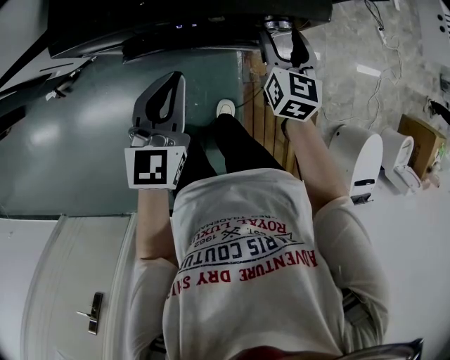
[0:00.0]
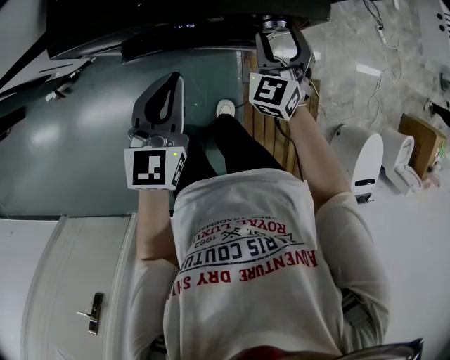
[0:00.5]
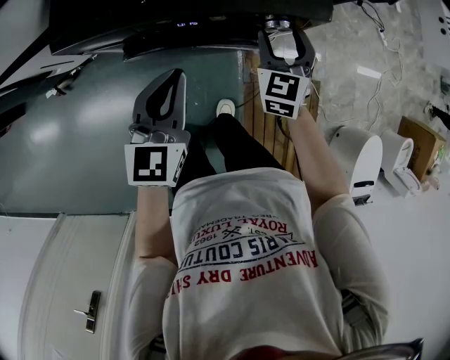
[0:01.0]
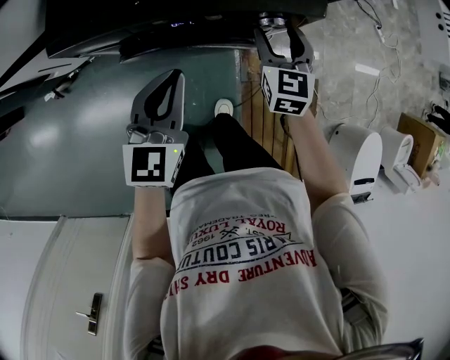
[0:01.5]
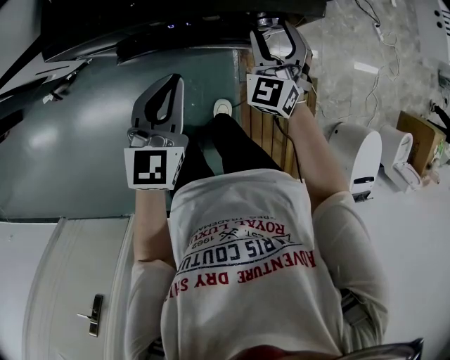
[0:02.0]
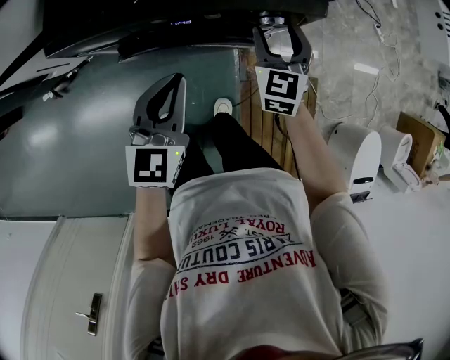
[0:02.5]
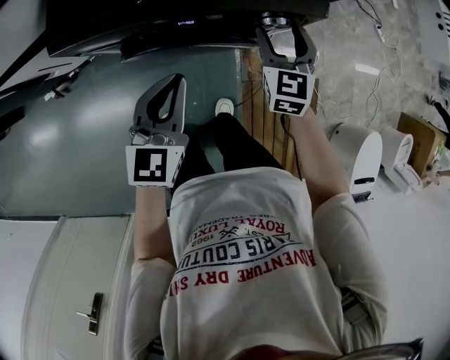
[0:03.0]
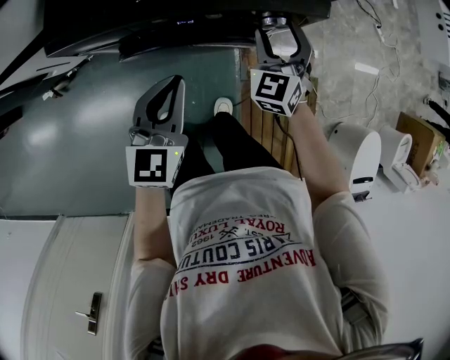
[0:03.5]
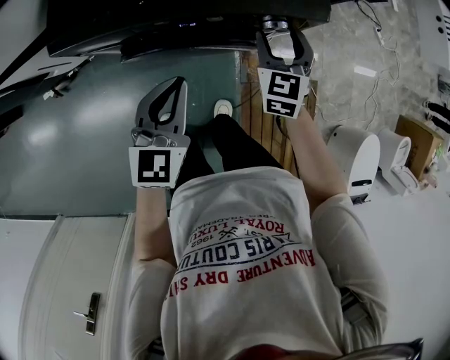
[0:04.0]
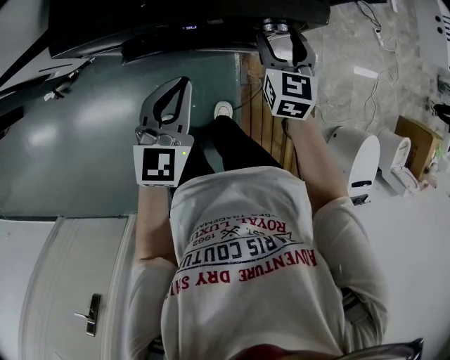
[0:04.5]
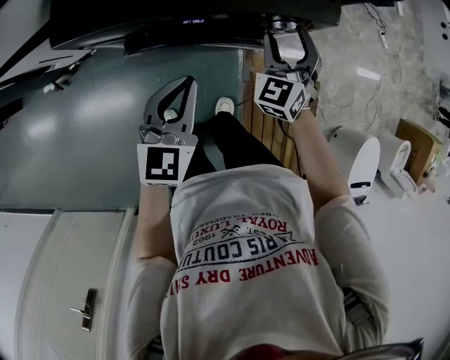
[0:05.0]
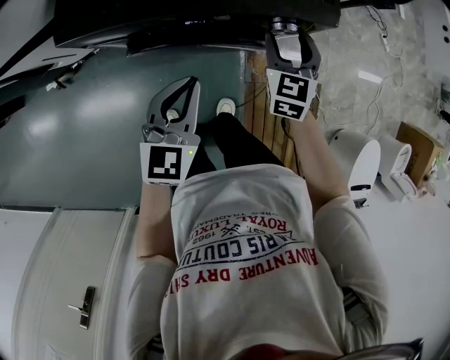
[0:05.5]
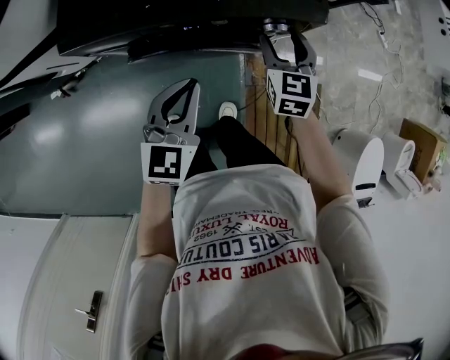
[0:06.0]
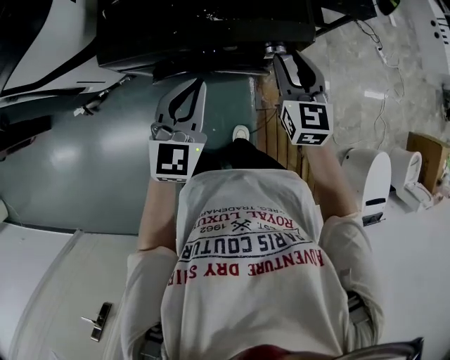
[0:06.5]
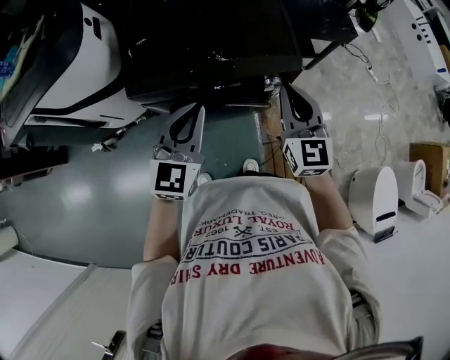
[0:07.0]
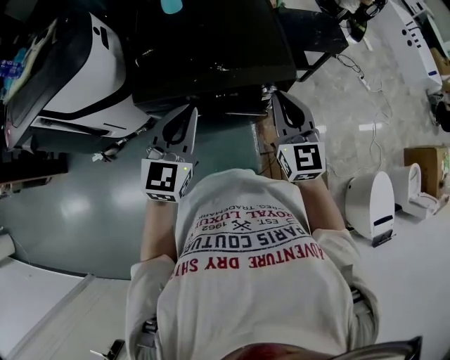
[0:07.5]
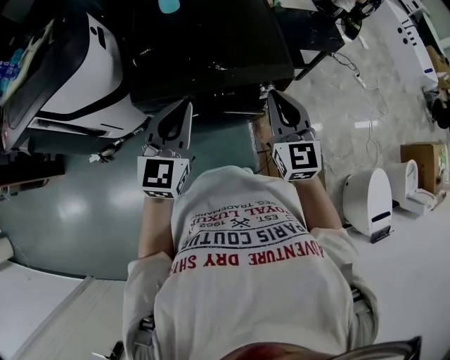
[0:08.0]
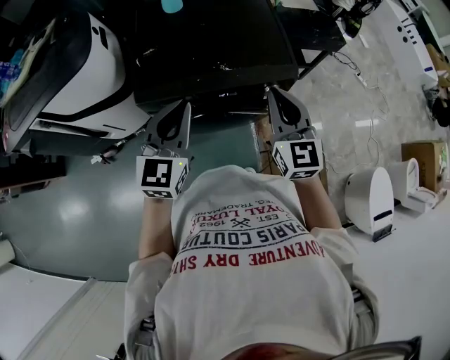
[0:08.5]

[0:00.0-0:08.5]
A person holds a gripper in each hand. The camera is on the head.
0:00.0 to 0:02.0: The right gripper rotates around the line of its fingers by some 40 degrees, counterclockwise from behind.
0:02.0 to 0:04.0: The right gripper swivels roughly 20 degrees.
0:04.0 to 0:06.5: The grippers both shift upward by about 10 cm. The right gripper closes its fingers.
0:06.5 to 0:08.5: The right gripper moves upward, to the left and backward, roughly 15 cm, and closes up. Meanwhile the left gripper is displaced upward and to the left by roughly 15 cm.

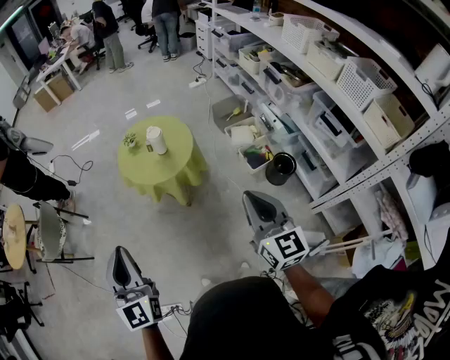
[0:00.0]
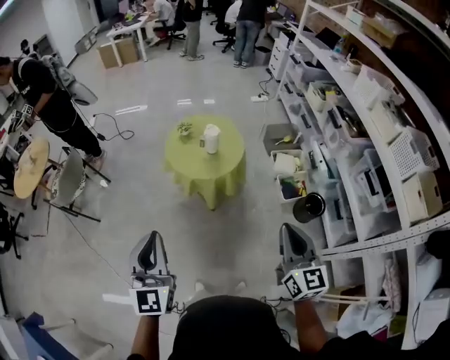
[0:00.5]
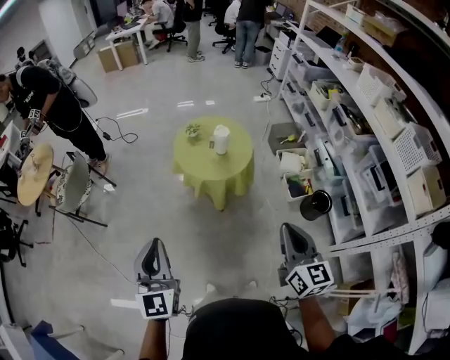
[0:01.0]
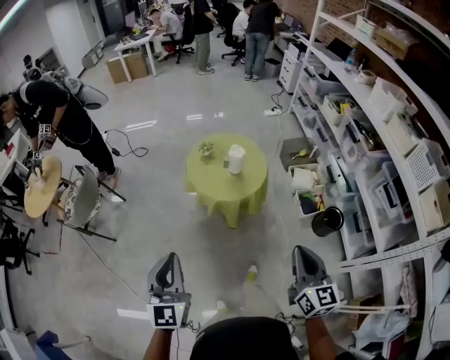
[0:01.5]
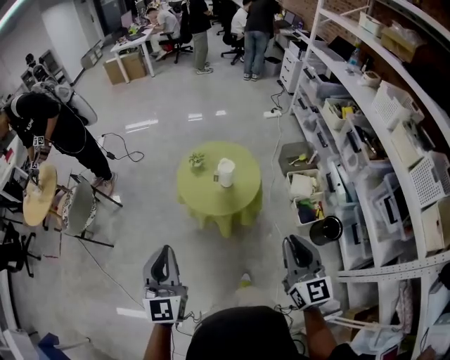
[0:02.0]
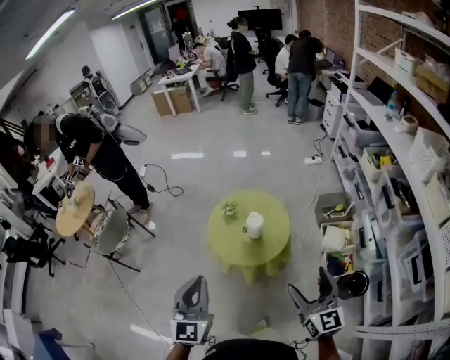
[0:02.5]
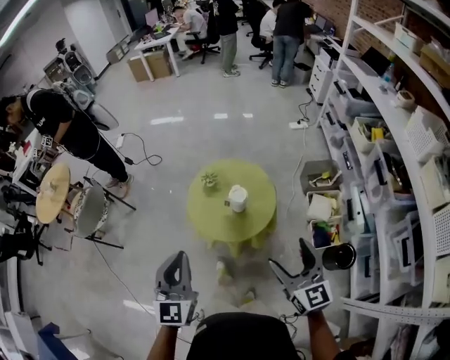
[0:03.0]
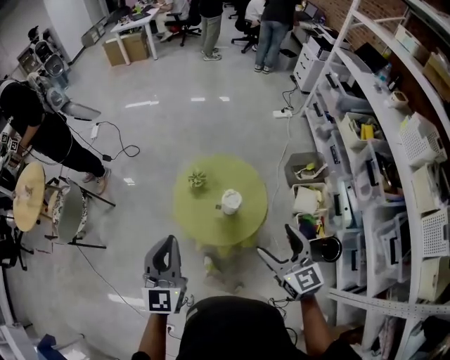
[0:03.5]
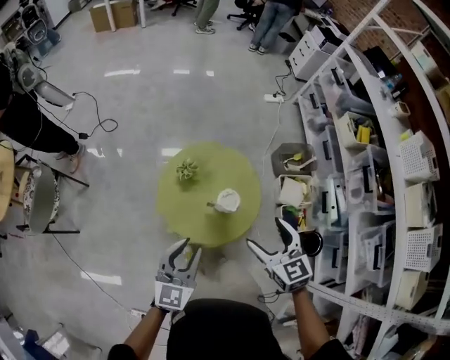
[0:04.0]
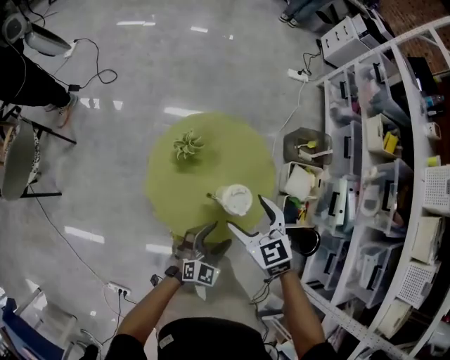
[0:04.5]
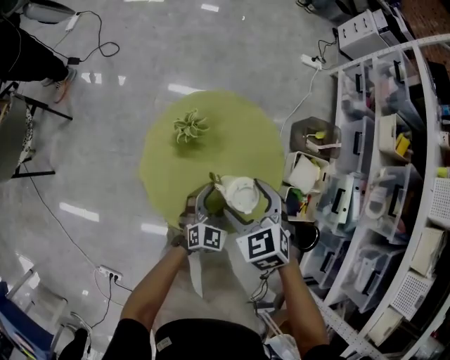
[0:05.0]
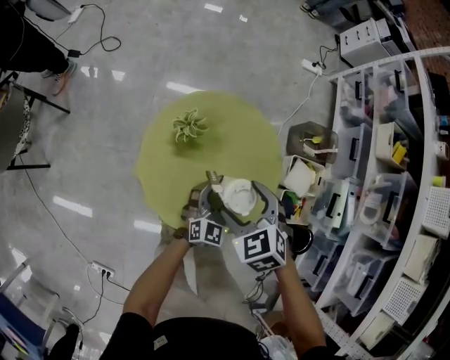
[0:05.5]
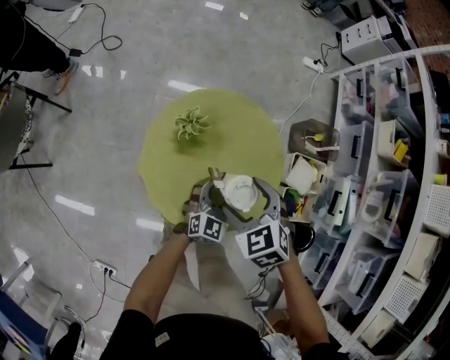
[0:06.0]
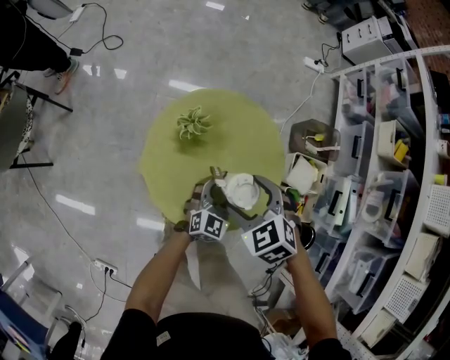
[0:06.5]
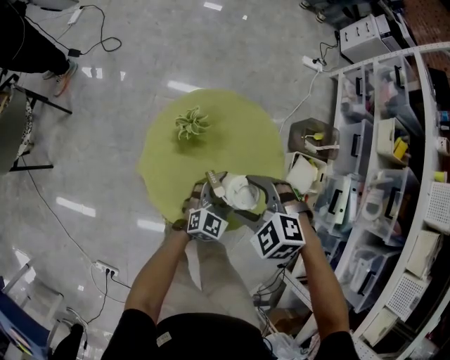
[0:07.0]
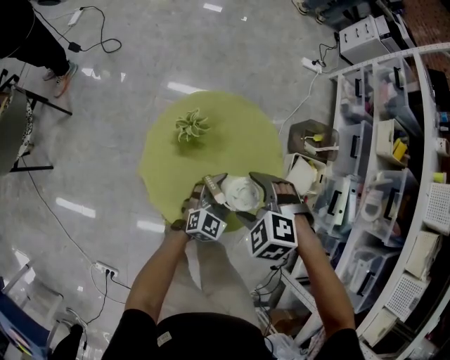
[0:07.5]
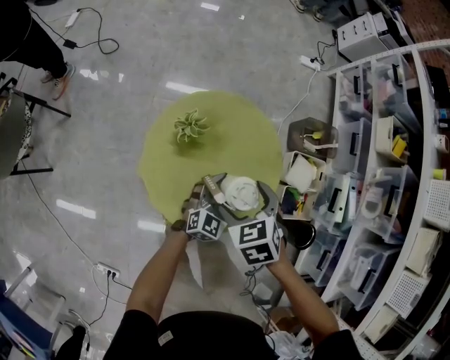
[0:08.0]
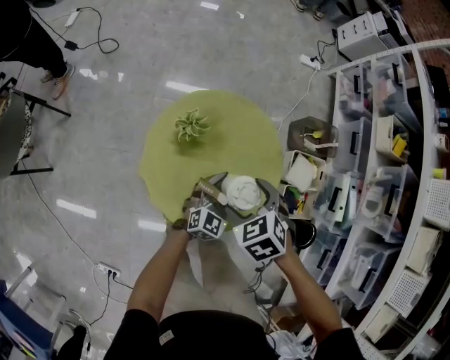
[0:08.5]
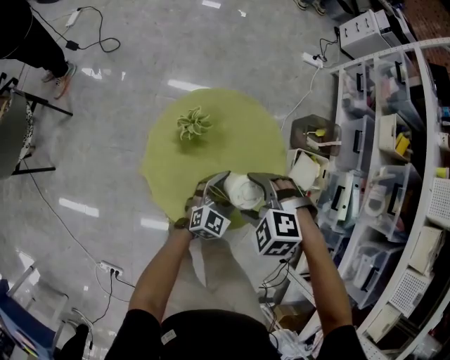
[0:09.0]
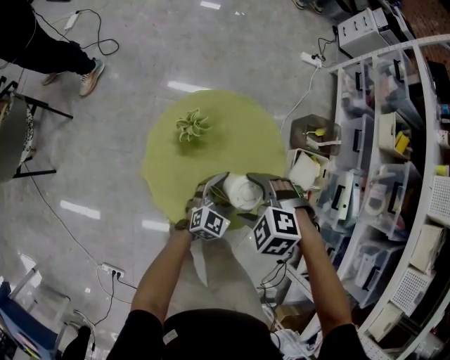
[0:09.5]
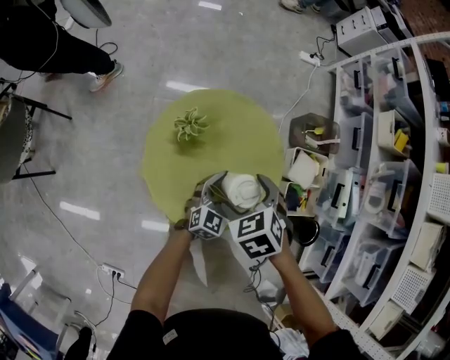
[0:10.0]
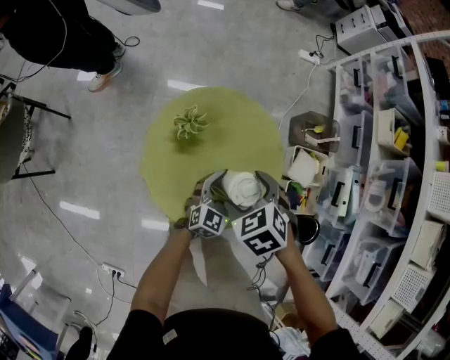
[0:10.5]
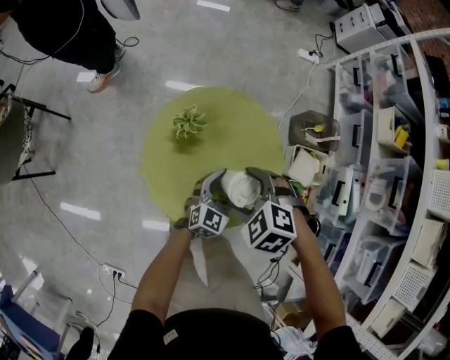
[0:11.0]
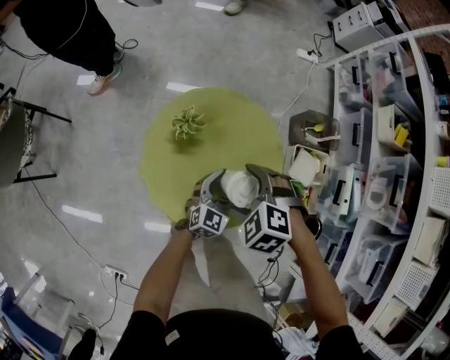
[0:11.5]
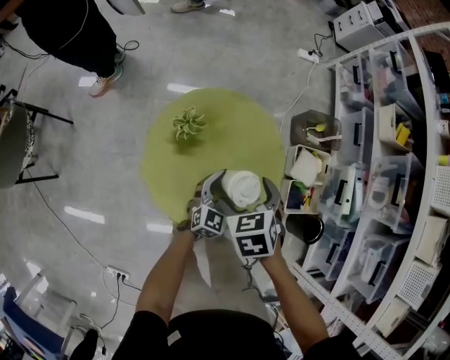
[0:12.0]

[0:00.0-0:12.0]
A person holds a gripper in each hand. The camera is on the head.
0:00.0 to 0:02.0: Both grippers move forward, approximately 15 cm.
0:02.0 to 0:04.0: The right gripper heads forward, covering some 35 cm, turns by some 30 degrees, and opens its fingers. The left gripper is displaced forward and downward by approximately 30 cm, and swivels roughly 20 degrees.
0:04.0 to 0:06.0: The left gripper heads downward, to the right and forward, covering roughly 40 cm, and opens its fingers. The right gripper is displaced downward and forward by about 25 cm, and changes its angle by about 40 degrees.

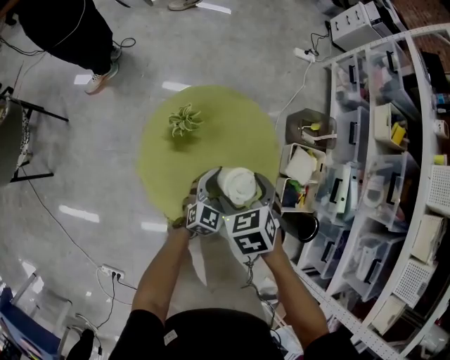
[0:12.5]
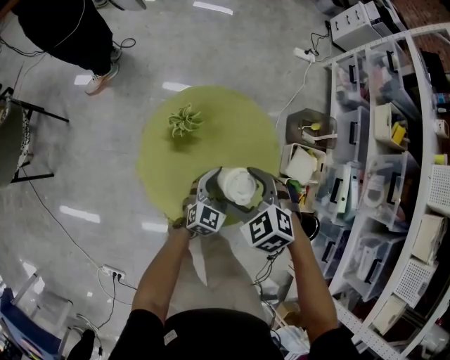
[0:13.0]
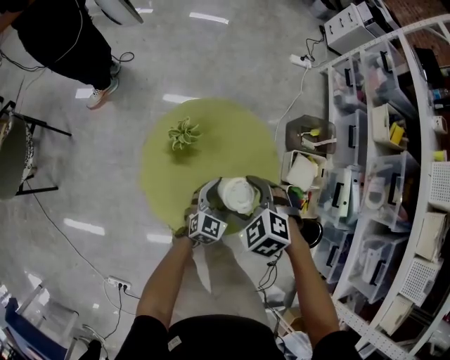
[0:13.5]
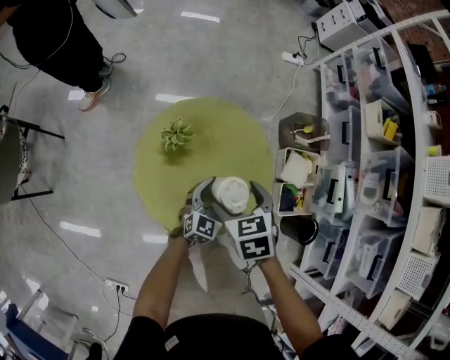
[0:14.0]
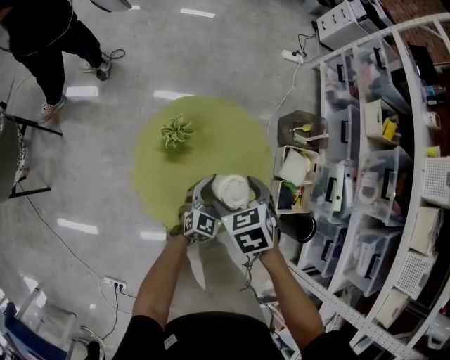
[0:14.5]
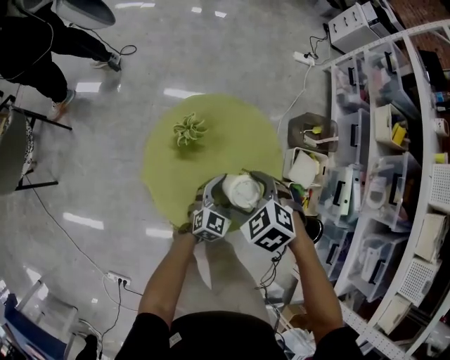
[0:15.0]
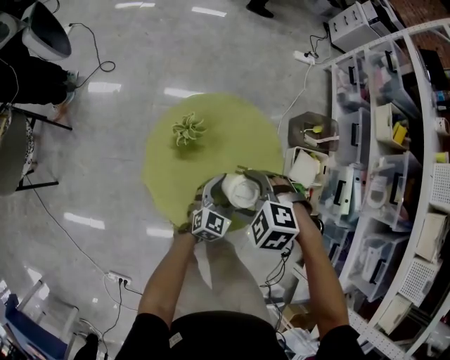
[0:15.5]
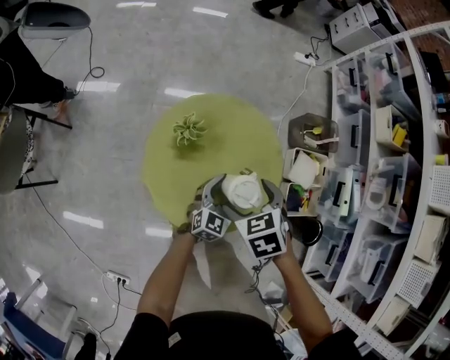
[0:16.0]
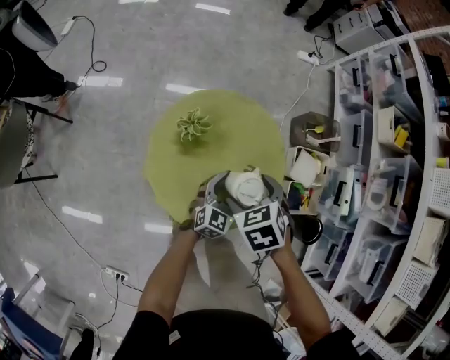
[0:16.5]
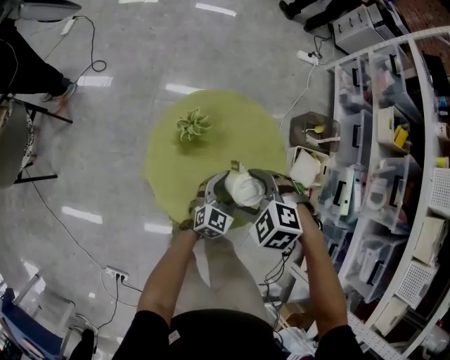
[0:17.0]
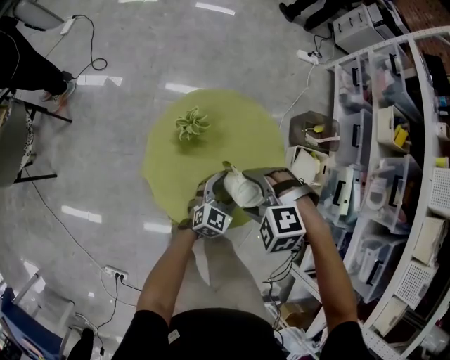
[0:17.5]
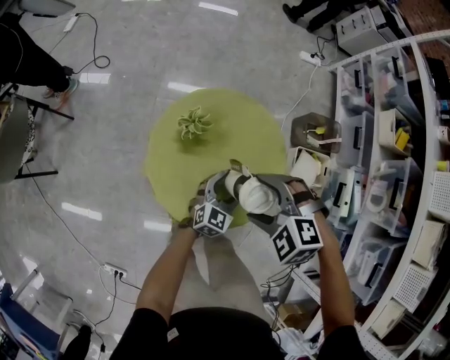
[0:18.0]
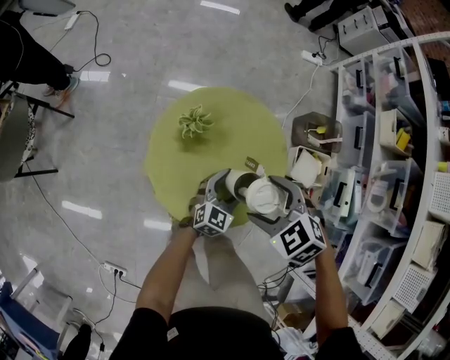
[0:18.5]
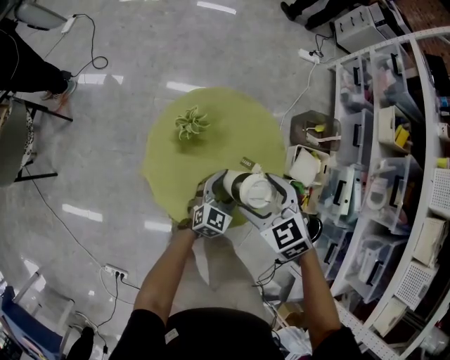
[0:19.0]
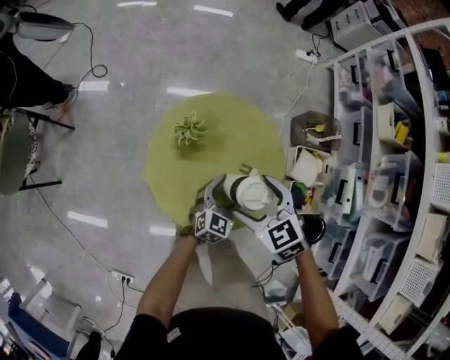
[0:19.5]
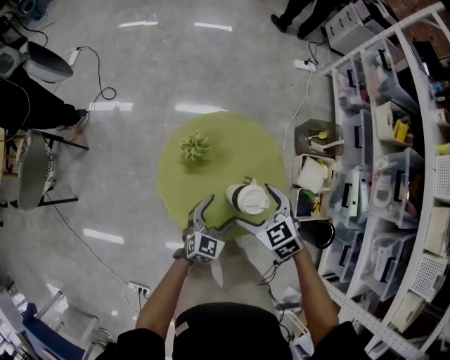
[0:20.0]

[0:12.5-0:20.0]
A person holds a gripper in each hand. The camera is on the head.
0:16.5 to 0:18.0: The right gripper moves about 5 cm, and rotates around the line of its fingers by about 50 degrees, counterclockwise from behind.
0:18.0 to 0:20.0: The right gripper rotates around the line of its fingers by approximately 40 degrees, clockwise from behind; the left gripper is displaced upward and to the left by roughly 10 cm.
